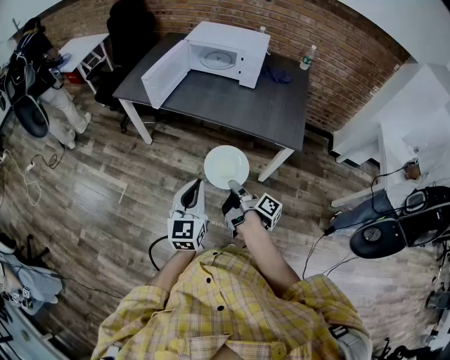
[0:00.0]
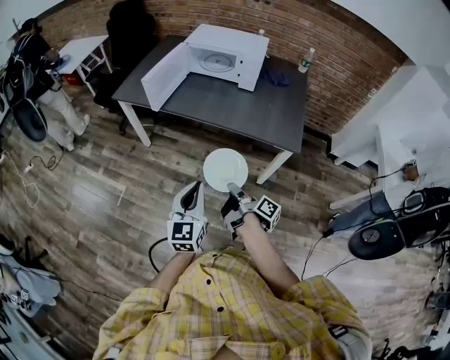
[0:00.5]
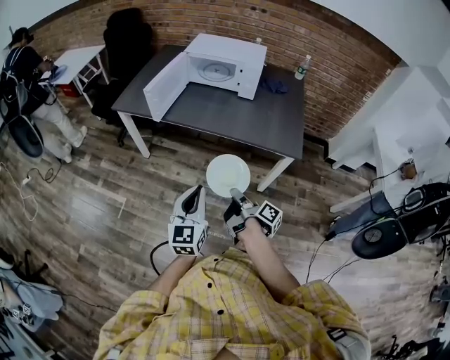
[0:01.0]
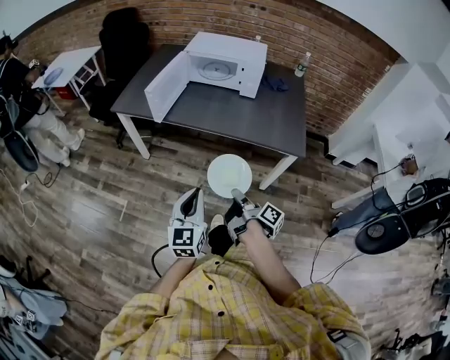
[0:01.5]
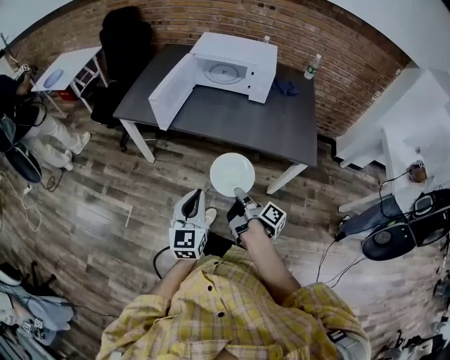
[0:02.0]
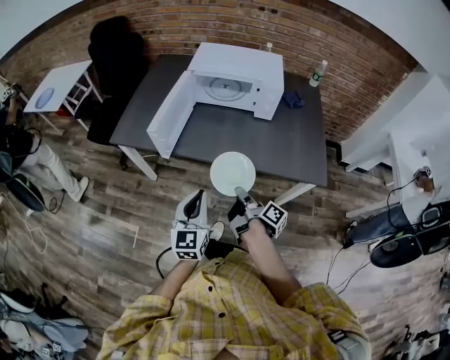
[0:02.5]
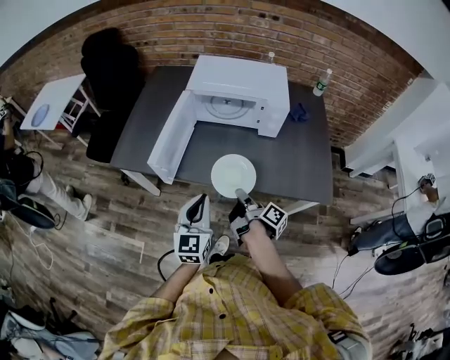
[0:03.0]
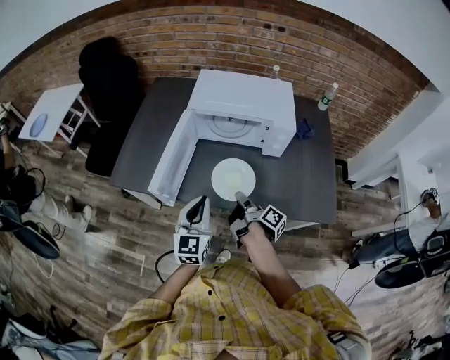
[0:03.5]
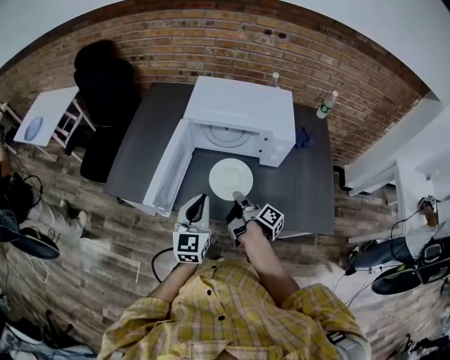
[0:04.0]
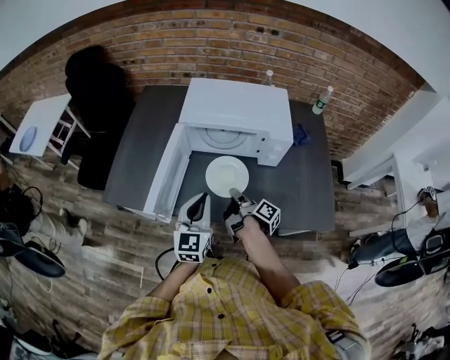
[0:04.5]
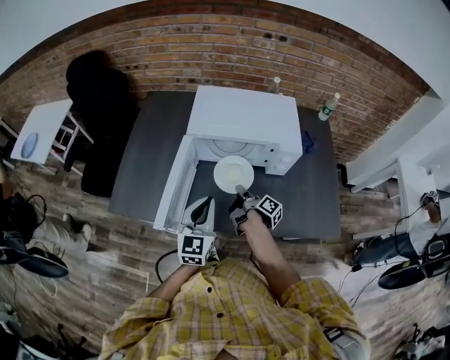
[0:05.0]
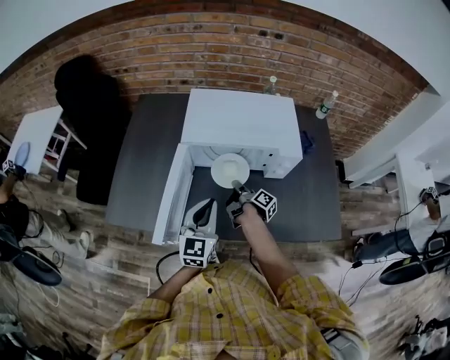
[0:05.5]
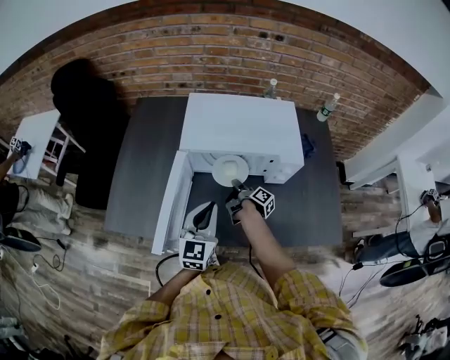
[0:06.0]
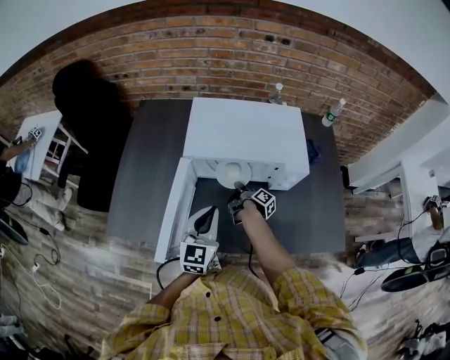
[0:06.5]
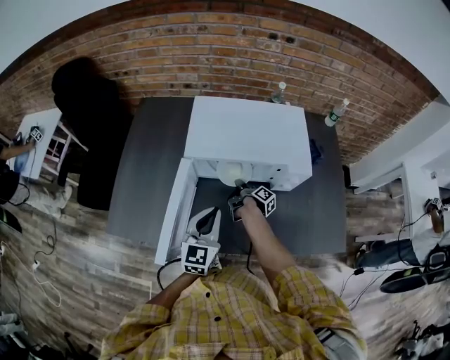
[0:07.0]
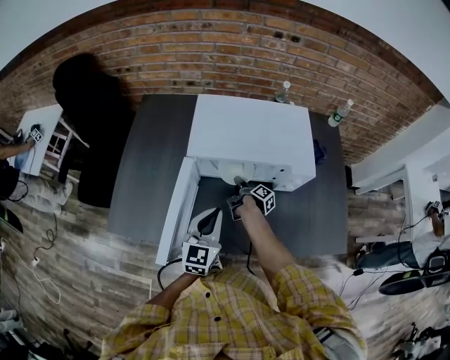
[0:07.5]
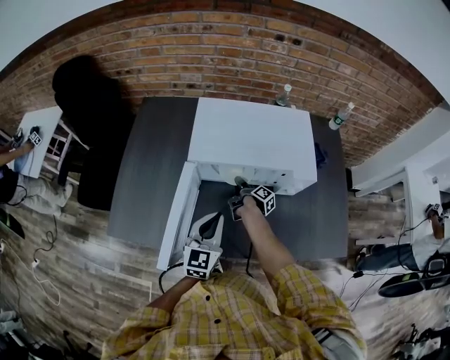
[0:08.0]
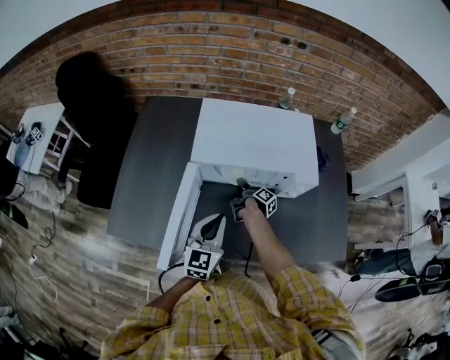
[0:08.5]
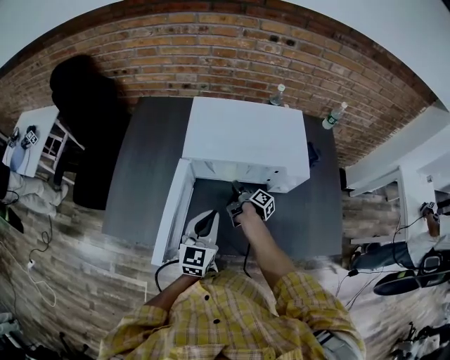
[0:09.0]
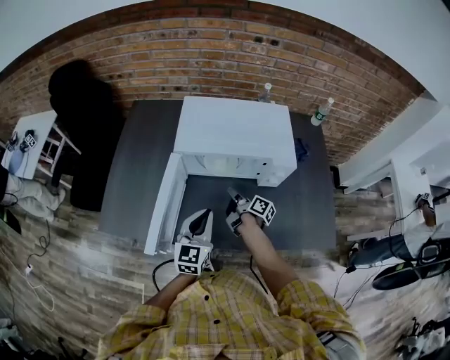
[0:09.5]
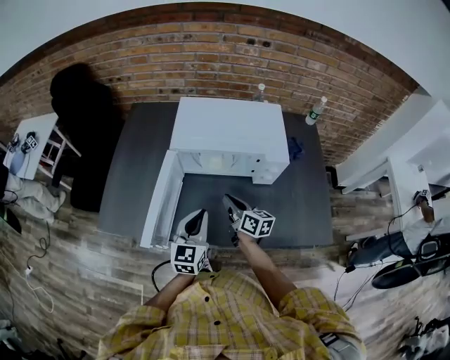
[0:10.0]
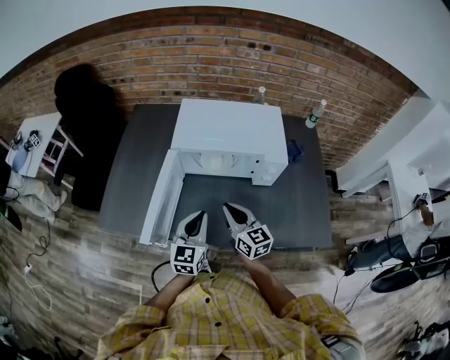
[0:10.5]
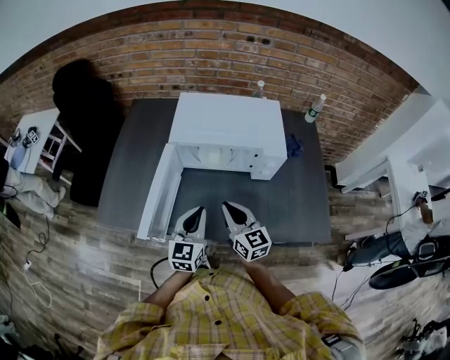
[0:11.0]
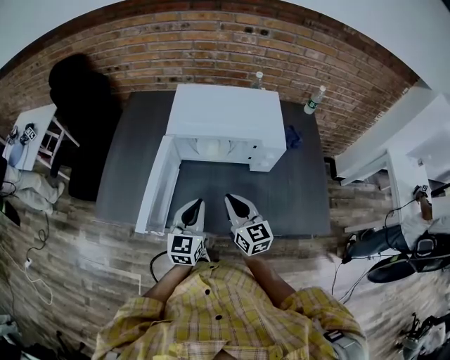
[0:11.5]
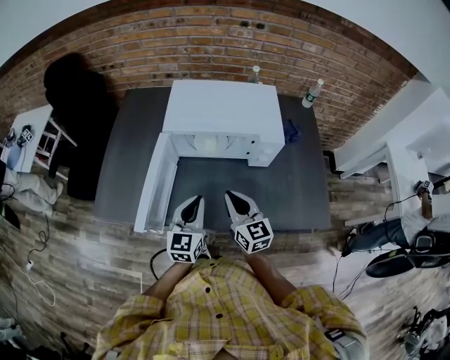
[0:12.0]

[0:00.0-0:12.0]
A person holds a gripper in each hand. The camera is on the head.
0:00.0 to 0:02.0: The left gripper ends up roughly 15 cm from where it was.
0:02.0 to 0:04.0: The left gripper shifts by approximately 40 cm.
0:04.0 to 0:06.0: The left gripper moves about 10 cm.
0:08.0 to 0:10.0: The left gripper shifts by roughly 5 cm.

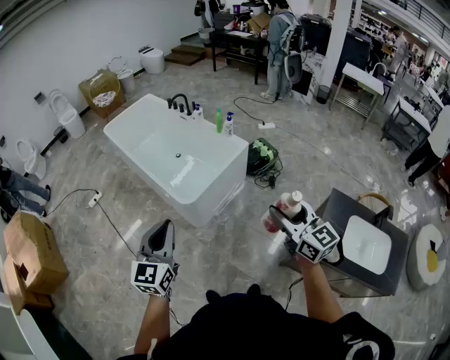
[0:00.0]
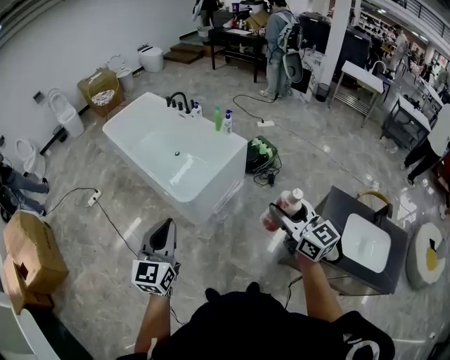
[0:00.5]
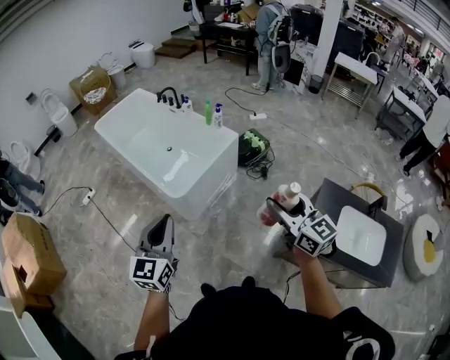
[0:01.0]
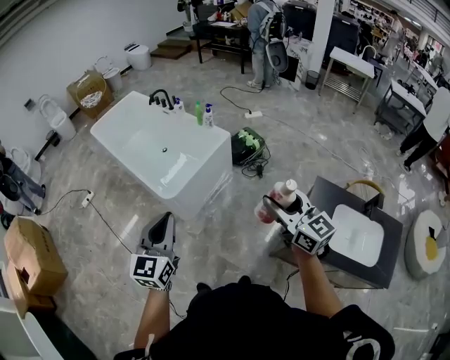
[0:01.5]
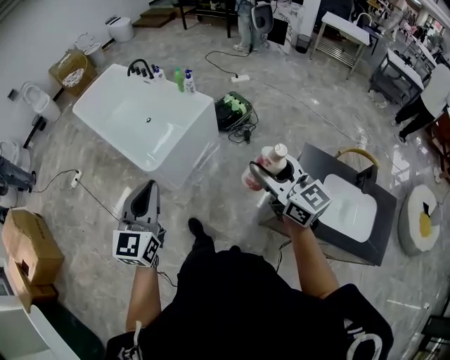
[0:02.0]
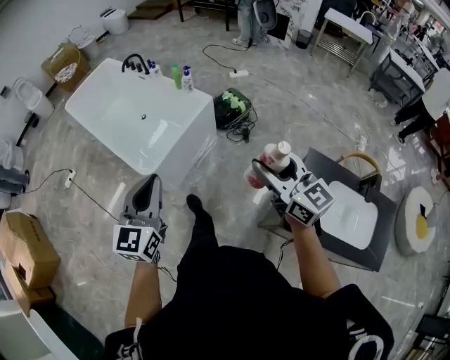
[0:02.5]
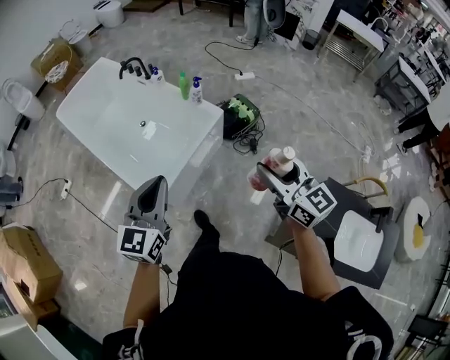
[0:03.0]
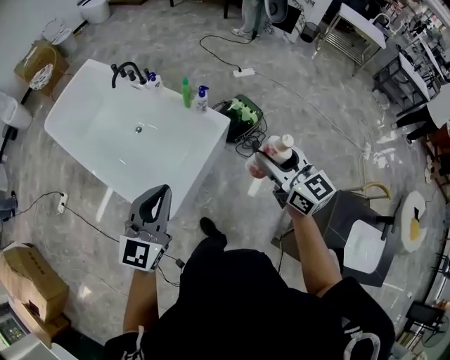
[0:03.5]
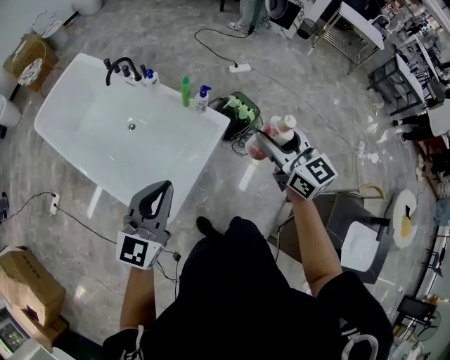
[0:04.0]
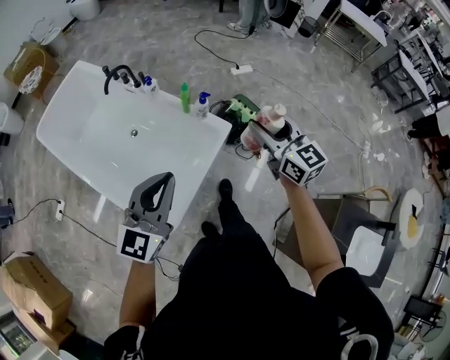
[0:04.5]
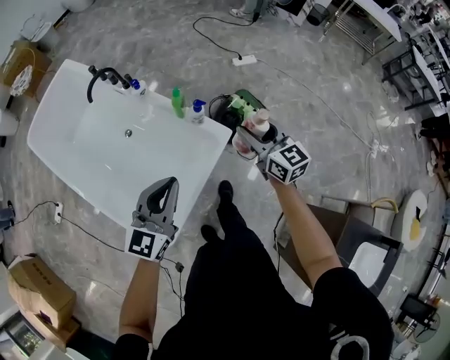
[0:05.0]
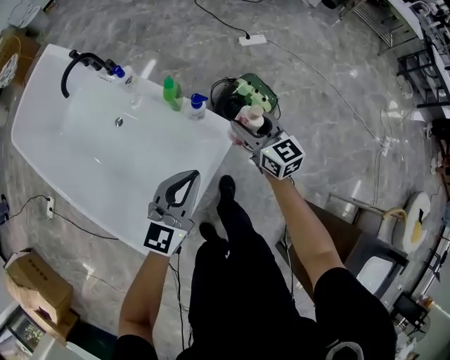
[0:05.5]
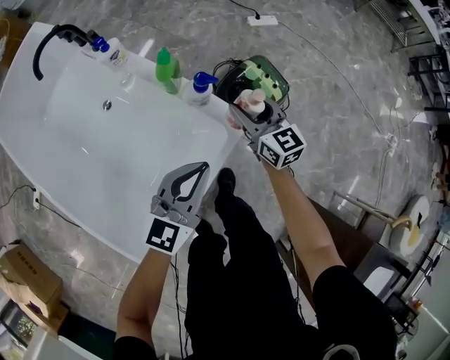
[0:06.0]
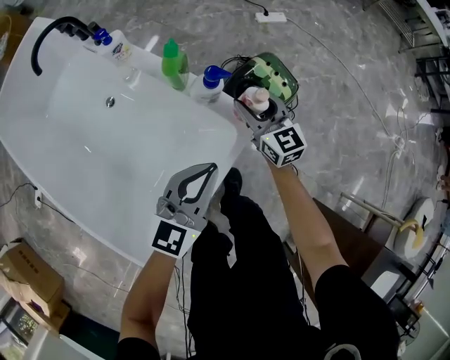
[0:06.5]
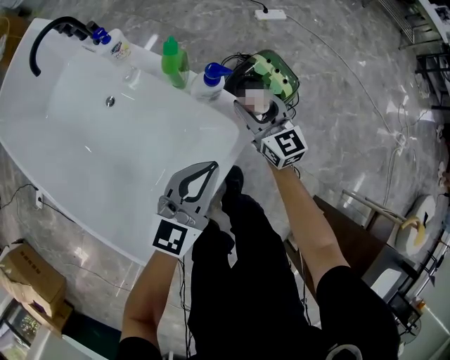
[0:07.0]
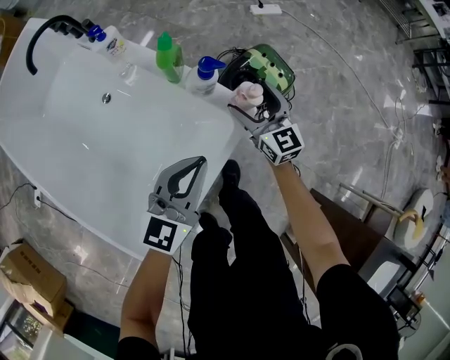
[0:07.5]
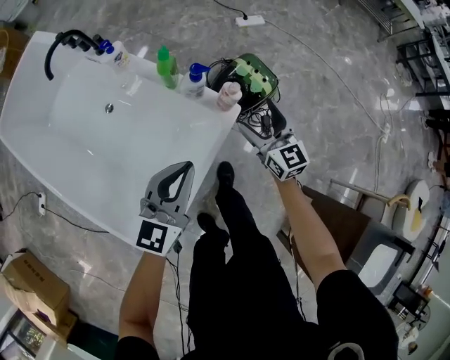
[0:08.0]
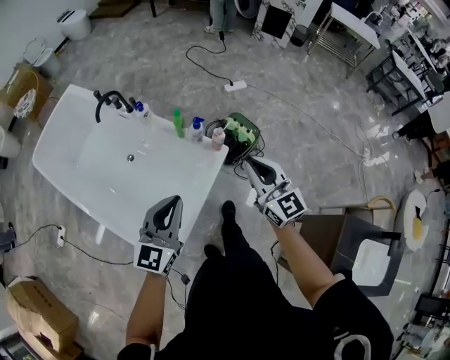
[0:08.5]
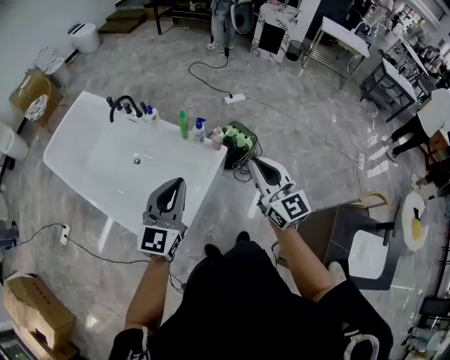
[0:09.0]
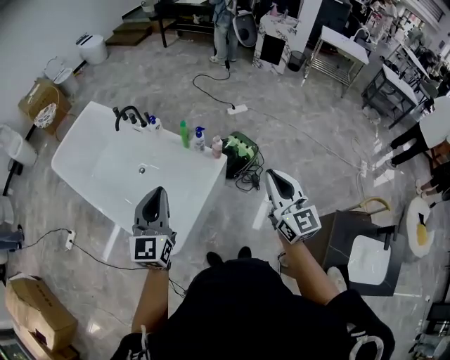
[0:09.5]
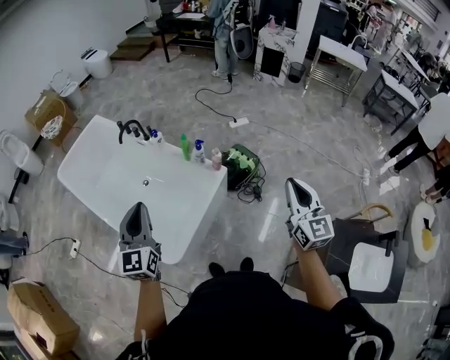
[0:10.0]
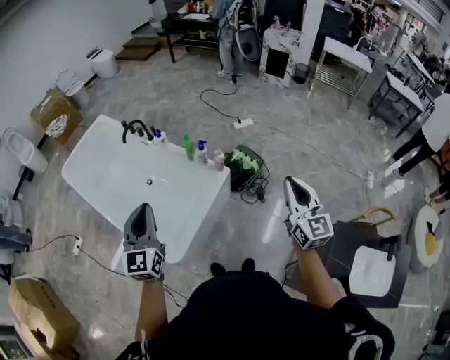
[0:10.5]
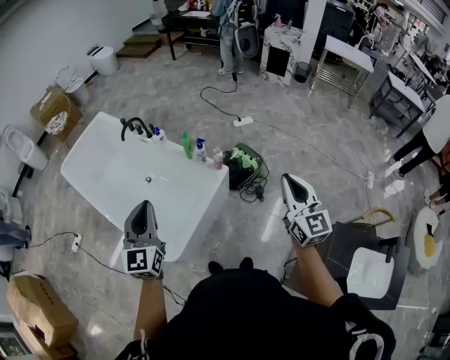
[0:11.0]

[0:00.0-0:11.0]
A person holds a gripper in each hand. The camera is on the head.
0:00.0 to 0:02.0: The two grippers go approximately 20 cm to the right.
0:02.0 to 0:03.5: The two grippers travel together, forward, about 50 cm.
0:03.5 to 0:05.5: The two grippers go approximately 50 cm forward and downward.
0:05.5 to 0:07.5: The two grippers go approximately 15 cm downward. The right gripper opens its fingers.
0:07.5 to 0:09.0: The two grippers go about 60 cm upward and backward. The right gripper closes its fingers, while the left gripper swivels roughly 20 degrees.
0:09.0 to 0:11.0: The right gripper shifts some 15 cm to the right; the left gripper is displaced backward by roughly 5 cm, and changes its angle by approximately 20 degrees.

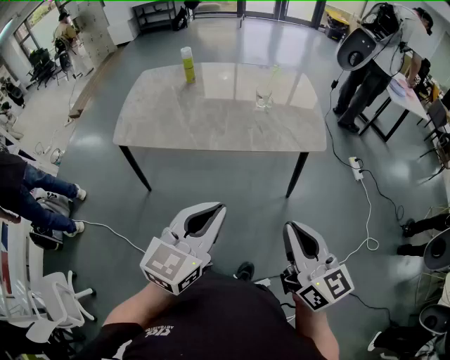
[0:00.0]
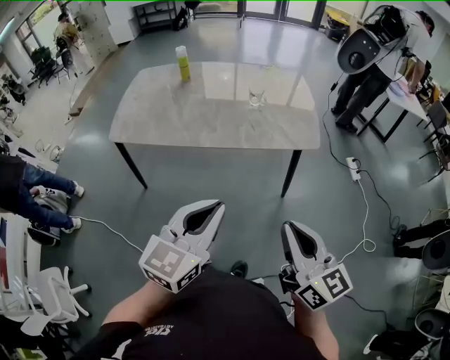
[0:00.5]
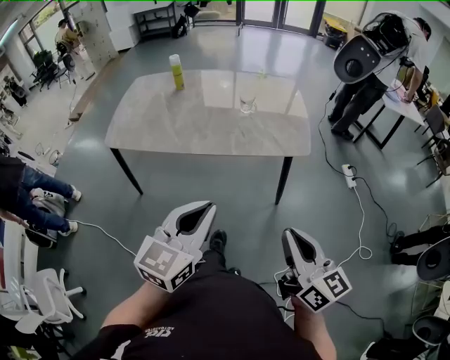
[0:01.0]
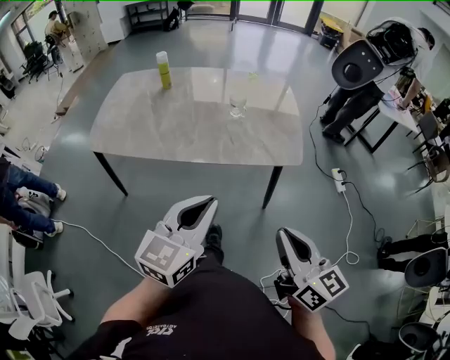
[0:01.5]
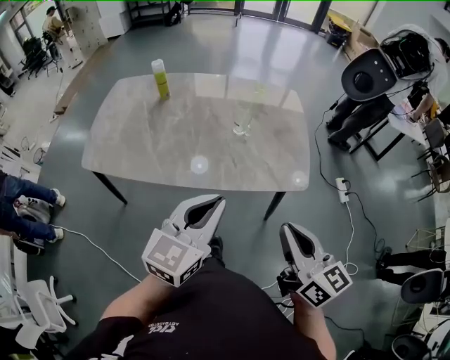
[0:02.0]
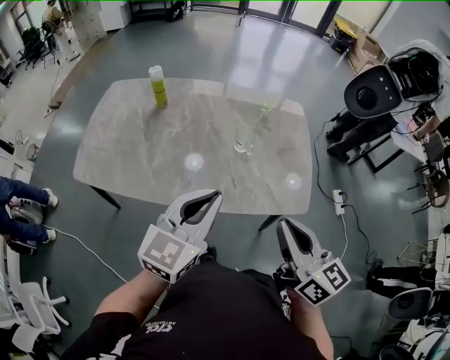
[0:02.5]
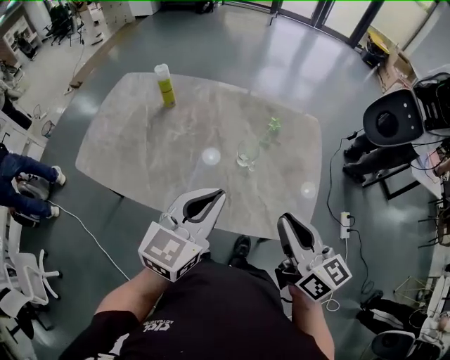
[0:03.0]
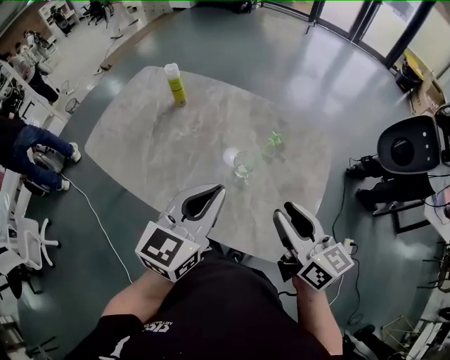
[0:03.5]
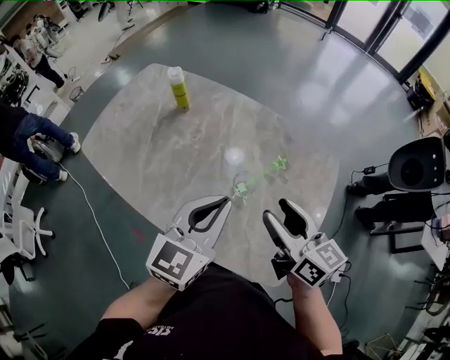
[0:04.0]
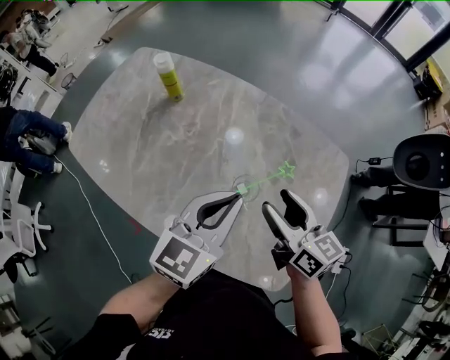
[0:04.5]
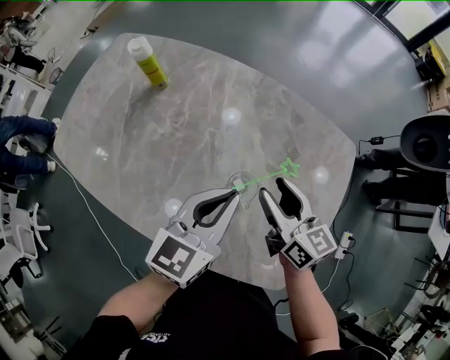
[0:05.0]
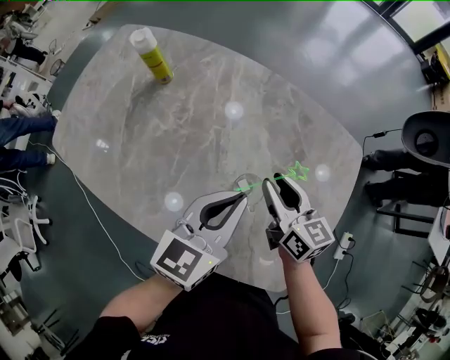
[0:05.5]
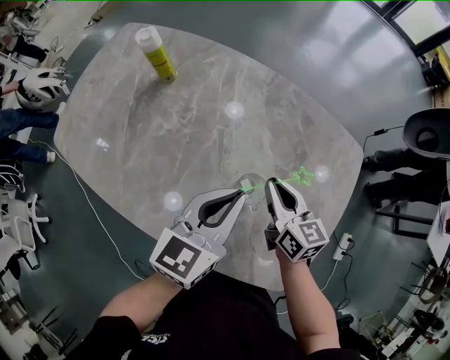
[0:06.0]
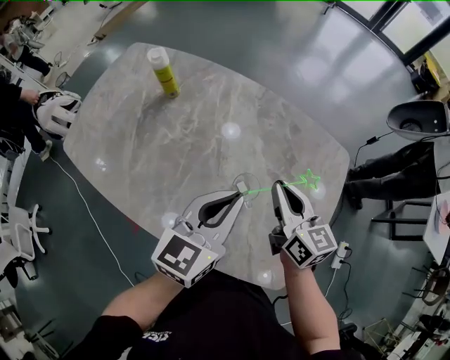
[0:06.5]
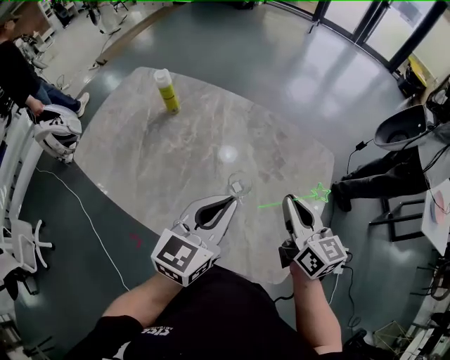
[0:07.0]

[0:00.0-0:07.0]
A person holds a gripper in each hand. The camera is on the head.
0:00.0 to 0:02.0: The grippers both shift forward and to the right by approximately 25 cm.
0:02.0 to 0:03.5: The grippers both shift forward by roughly 25 cm. The right gripper changes its angle by some 30 degrees, and opens. The left gripper changes its angle by roughly 20 degrees.
0:03.5 to 0:05.0: Both grippers move forward and downward, roughly 20 cm.
0:05.0 to 0:07.0: The right gripper travels upward and backward by about 10 cm, and closes; the left gripper shifts about 10 cm backward and upward.
